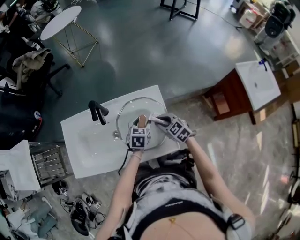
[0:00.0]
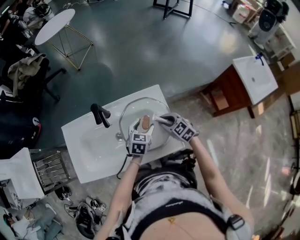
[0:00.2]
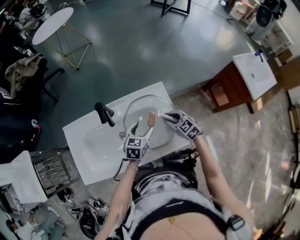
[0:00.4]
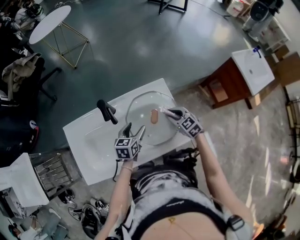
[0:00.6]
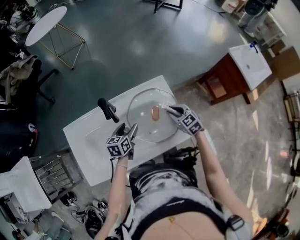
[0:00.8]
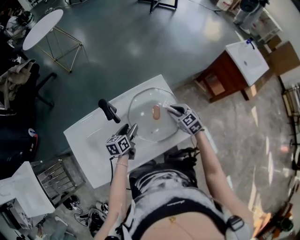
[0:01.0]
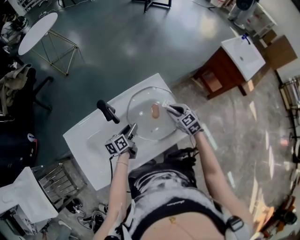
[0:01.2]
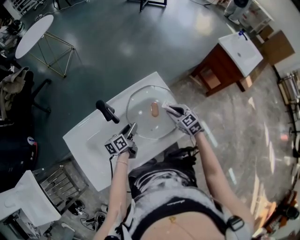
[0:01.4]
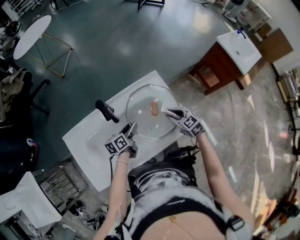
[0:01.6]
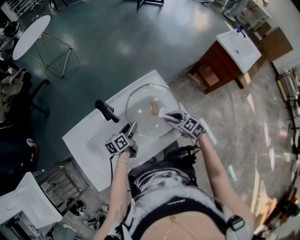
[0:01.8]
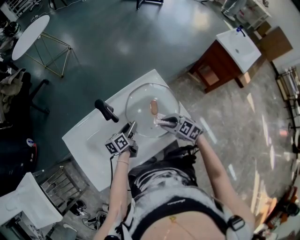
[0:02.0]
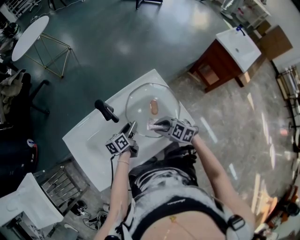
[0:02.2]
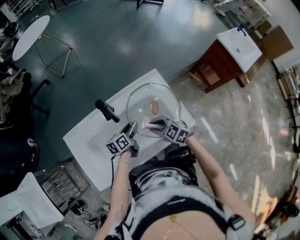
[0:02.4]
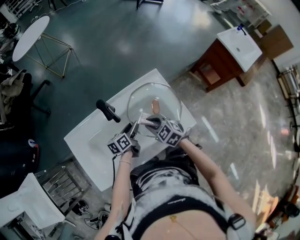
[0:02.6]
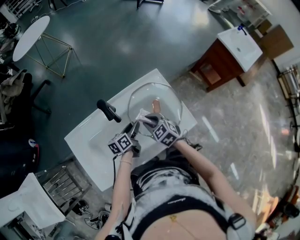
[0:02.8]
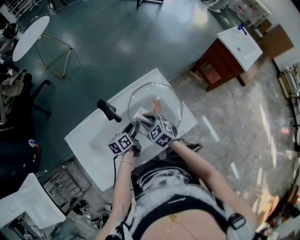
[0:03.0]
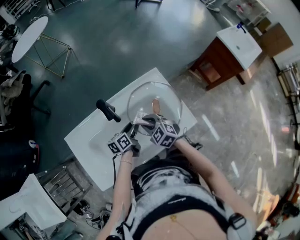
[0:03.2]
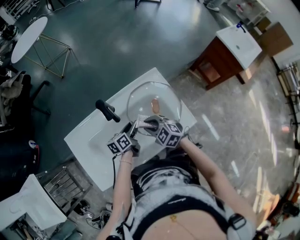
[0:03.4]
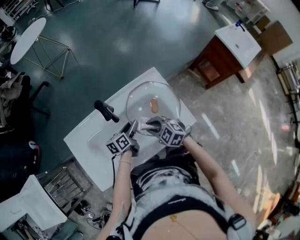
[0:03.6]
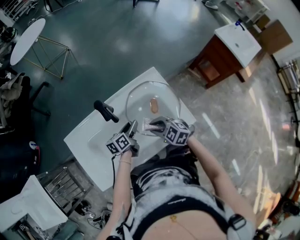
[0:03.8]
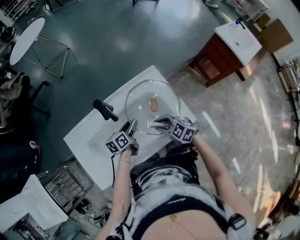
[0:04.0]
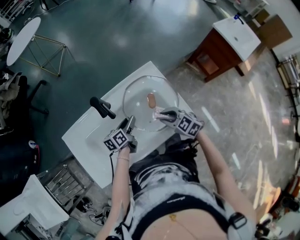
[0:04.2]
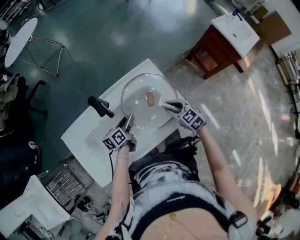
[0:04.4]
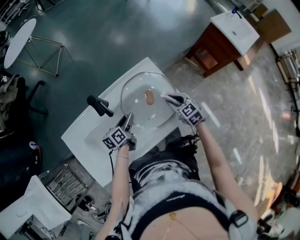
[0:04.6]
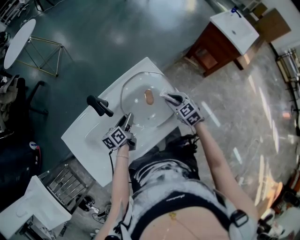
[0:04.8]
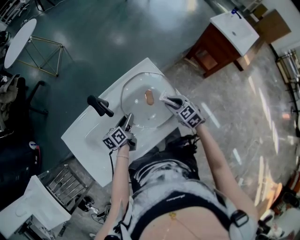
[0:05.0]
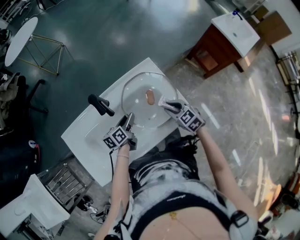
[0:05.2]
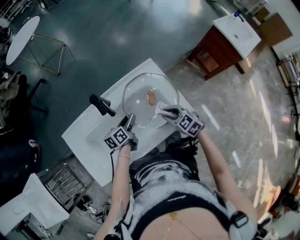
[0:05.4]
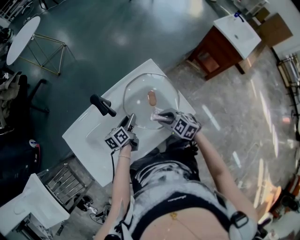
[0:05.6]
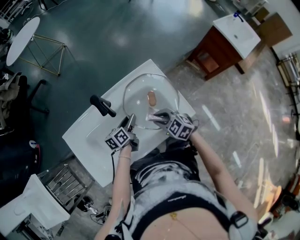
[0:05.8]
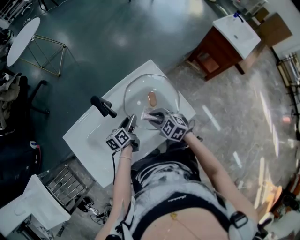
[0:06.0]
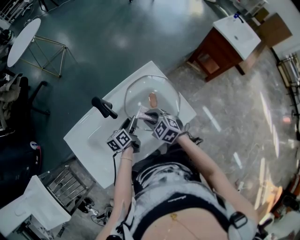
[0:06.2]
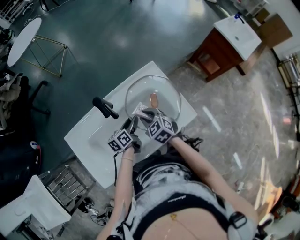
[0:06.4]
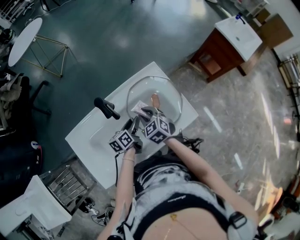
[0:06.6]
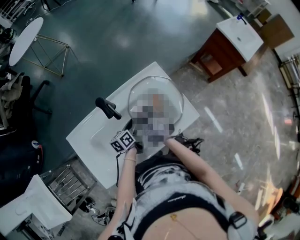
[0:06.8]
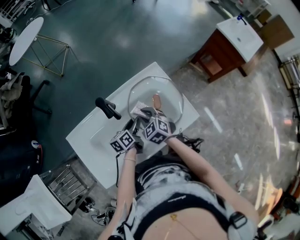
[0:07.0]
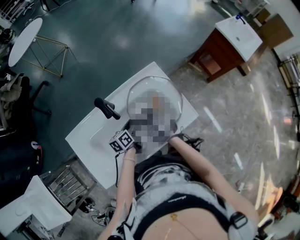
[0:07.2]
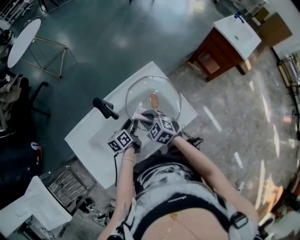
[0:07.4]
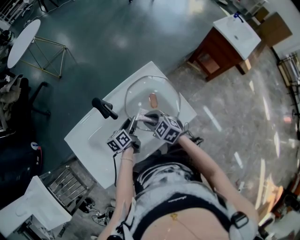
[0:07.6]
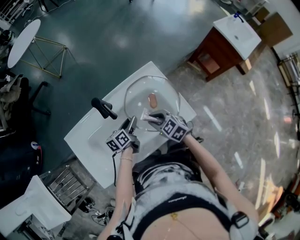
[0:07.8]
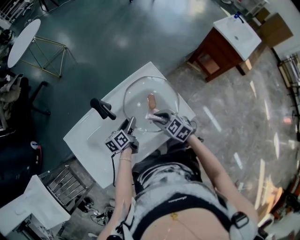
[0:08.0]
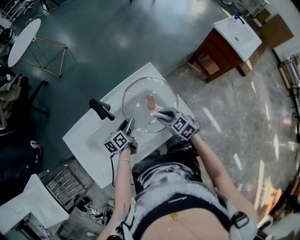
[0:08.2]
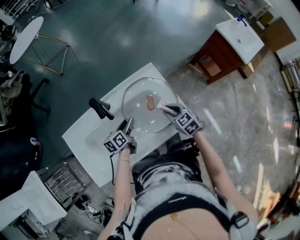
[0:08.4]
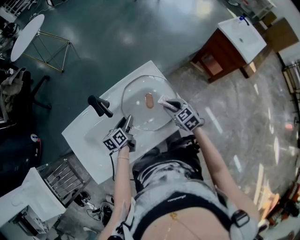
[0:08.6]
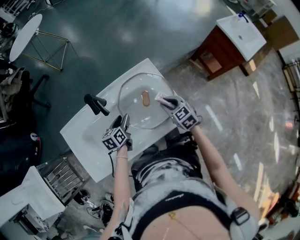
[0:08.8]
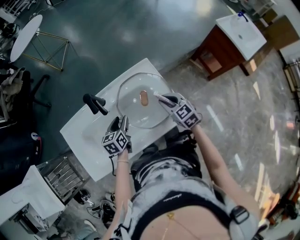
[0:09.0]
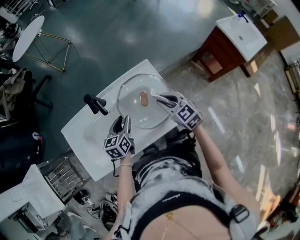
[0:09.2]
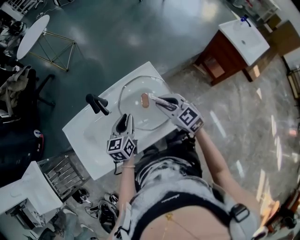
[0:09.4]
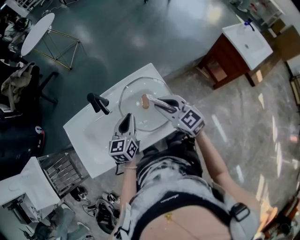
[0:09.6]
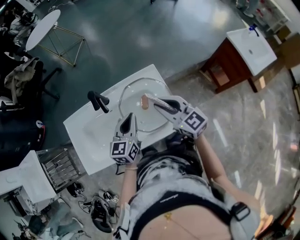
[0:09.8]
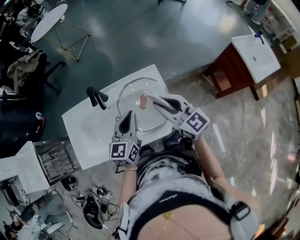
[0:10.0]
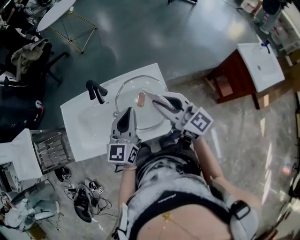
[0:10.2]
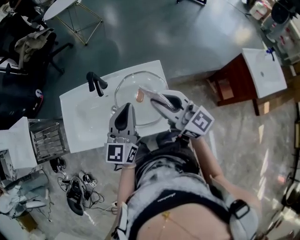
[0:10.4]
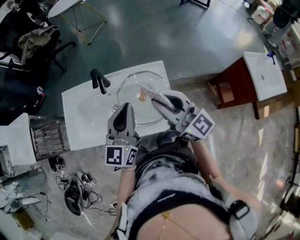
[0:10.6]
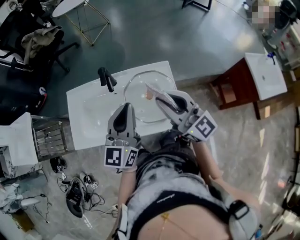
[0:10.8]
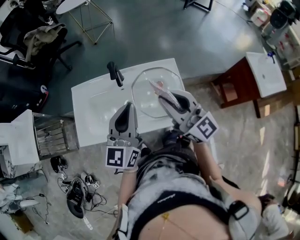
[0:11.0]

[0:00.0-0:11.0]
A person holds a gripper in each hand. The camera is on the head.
0:00.0 to 0:01.6: The left gripper shifts by roughly 15 cm, and swivels some 40 degrees; the right gripper changes place by roughly 5 cm, and turns by approximately 20 degrees.
0:01.6 to 0:03.2: The right gripper is displaced to the left by approximately 15 cm.
0:03.2 to 0:04.8: The right gripper moves to the right, some 20 cm, and rotates some 20 degrees.
0:04.8 to 0:06.2: The right gripper shifts about 15 cm to the left.
0:06.2 to 0:07.8: The grippers stay close to where they were, moving slightly.
0:07.8 to 0:09.4: The left gripper travels upward by some 15 cm, and rotates approximately 30 degrees; the right gripper is displaced upward and to the right by approximately 15 cm.
0:09.4 to 0:11.0: The left gripper heads upward and backward, covering approximately 20 cm, and swivels about 30 degrees, while the right gripper goes approximately 20 cm upward, and points its fingers approximately 40 degrees further upward.

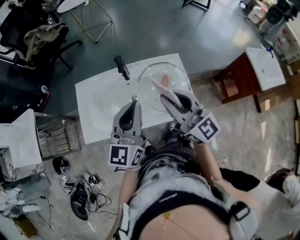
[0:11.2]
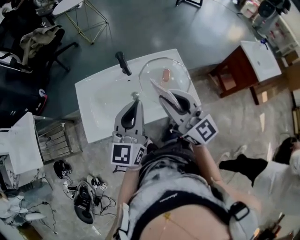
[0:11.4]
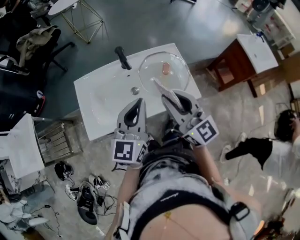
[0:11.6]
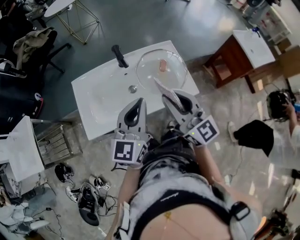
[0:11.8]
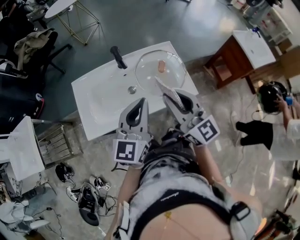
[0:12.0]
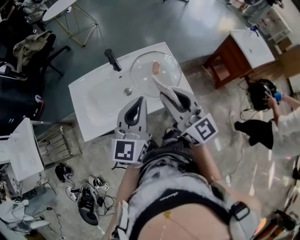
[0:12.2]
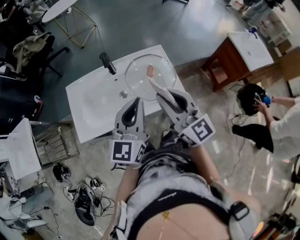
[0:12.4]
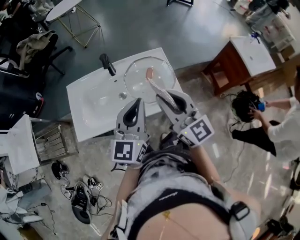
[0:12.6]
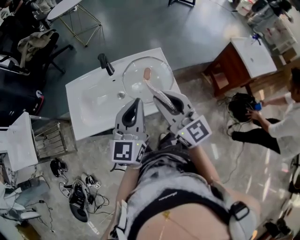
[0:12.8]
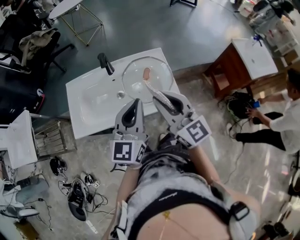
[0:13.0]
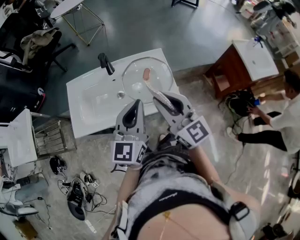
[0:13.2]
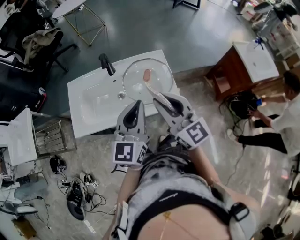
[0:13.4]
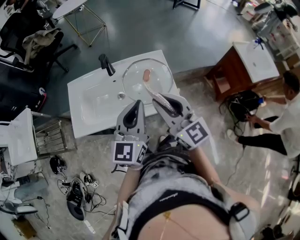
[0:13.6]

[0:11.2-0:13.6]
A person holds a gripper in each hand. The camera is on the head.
0:11.2 to 0:12.4: The right gripper is displaced backward by about 5 cm, while the left gripper is displaced backward and to the right by roughly 10 cm.
0:12.4 to 0:13.6: The grippers stay close to where they were, moving slightly.

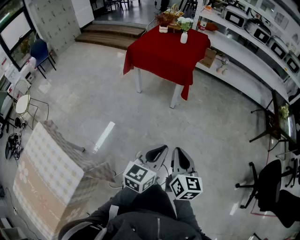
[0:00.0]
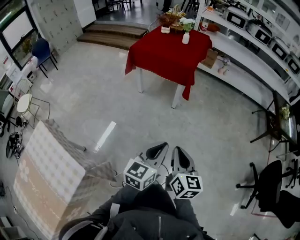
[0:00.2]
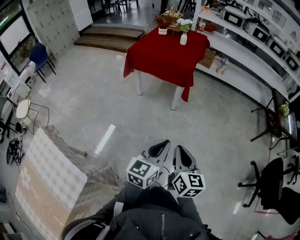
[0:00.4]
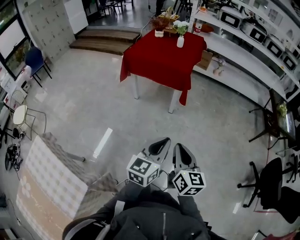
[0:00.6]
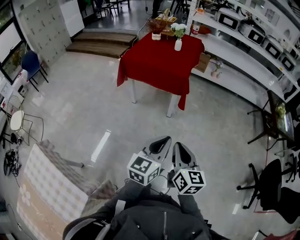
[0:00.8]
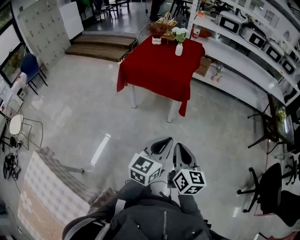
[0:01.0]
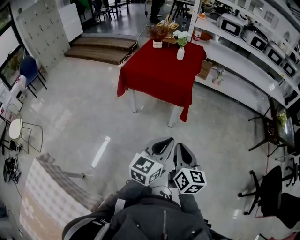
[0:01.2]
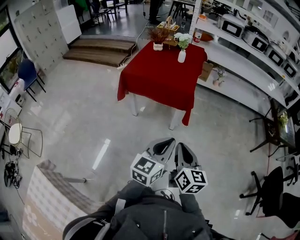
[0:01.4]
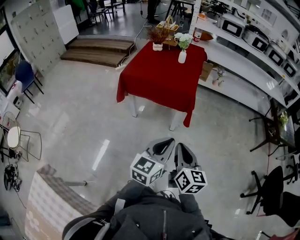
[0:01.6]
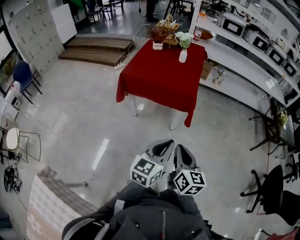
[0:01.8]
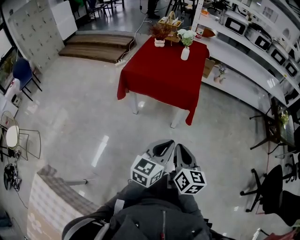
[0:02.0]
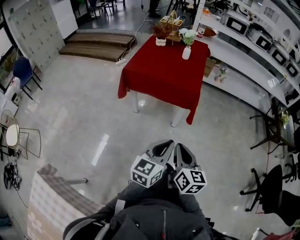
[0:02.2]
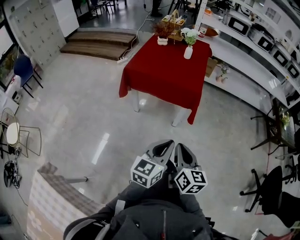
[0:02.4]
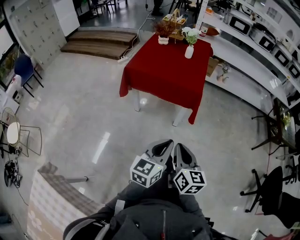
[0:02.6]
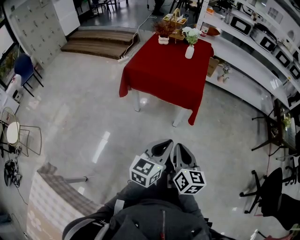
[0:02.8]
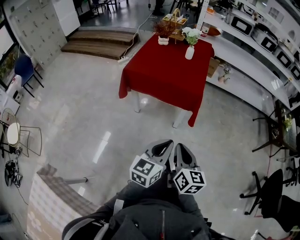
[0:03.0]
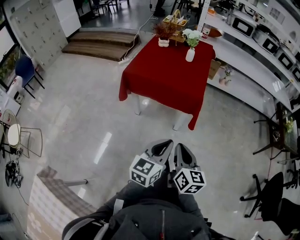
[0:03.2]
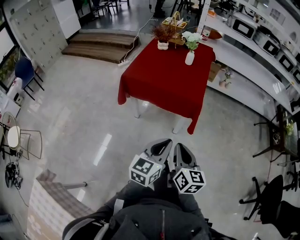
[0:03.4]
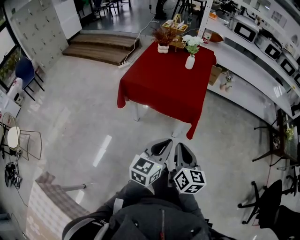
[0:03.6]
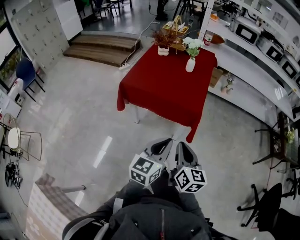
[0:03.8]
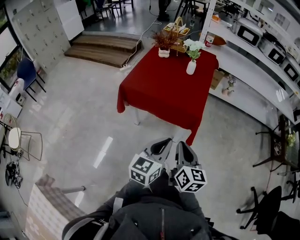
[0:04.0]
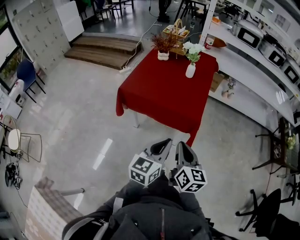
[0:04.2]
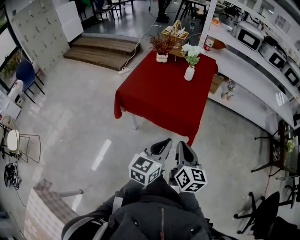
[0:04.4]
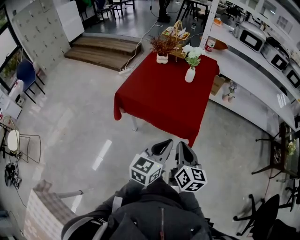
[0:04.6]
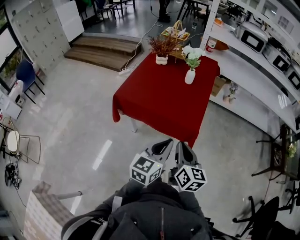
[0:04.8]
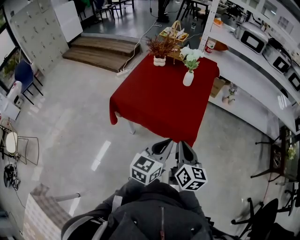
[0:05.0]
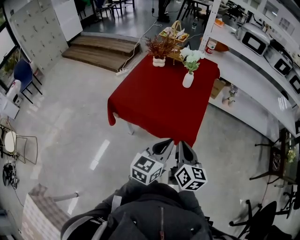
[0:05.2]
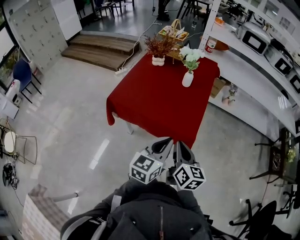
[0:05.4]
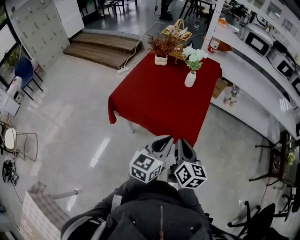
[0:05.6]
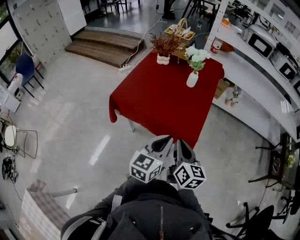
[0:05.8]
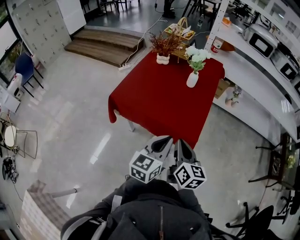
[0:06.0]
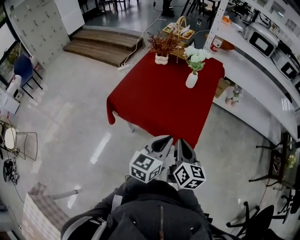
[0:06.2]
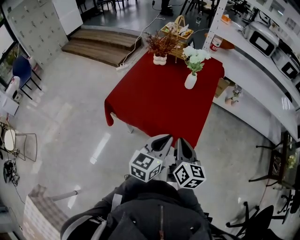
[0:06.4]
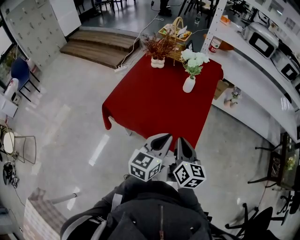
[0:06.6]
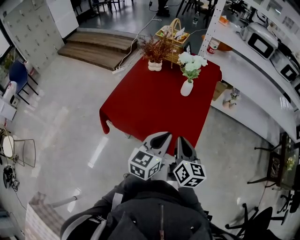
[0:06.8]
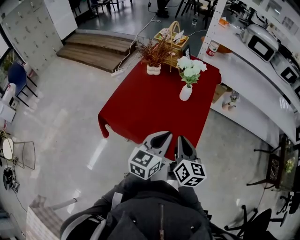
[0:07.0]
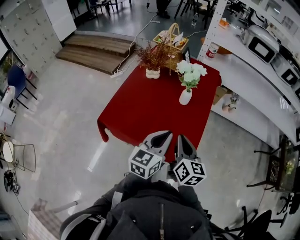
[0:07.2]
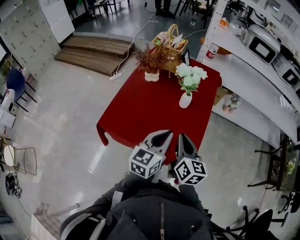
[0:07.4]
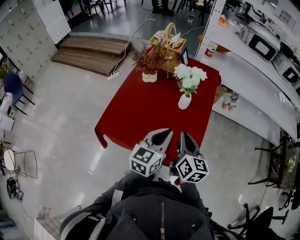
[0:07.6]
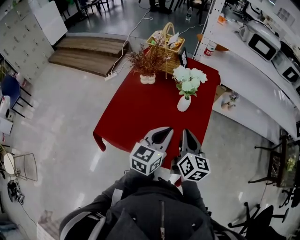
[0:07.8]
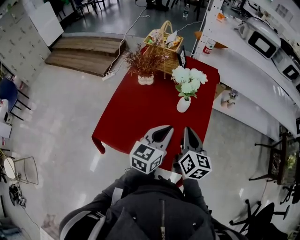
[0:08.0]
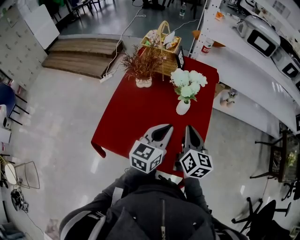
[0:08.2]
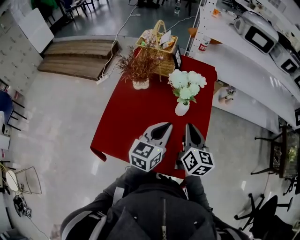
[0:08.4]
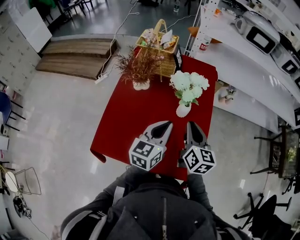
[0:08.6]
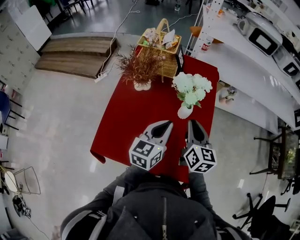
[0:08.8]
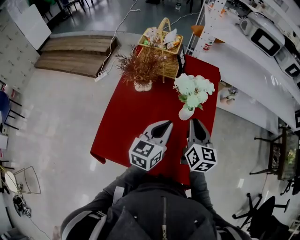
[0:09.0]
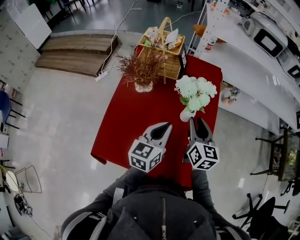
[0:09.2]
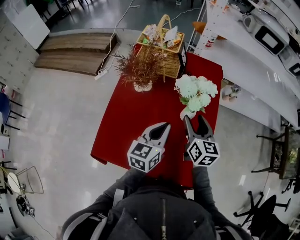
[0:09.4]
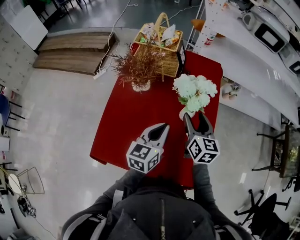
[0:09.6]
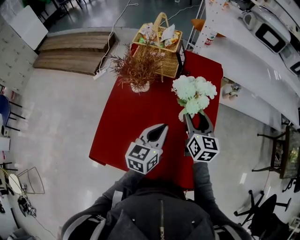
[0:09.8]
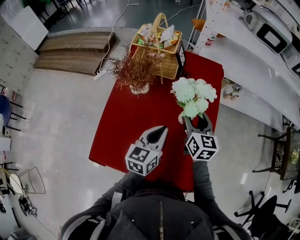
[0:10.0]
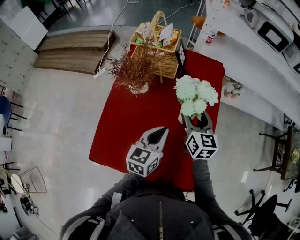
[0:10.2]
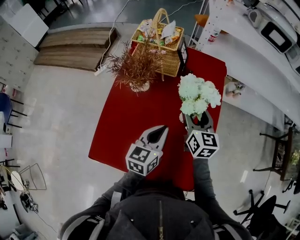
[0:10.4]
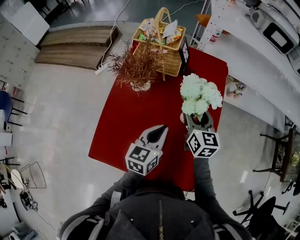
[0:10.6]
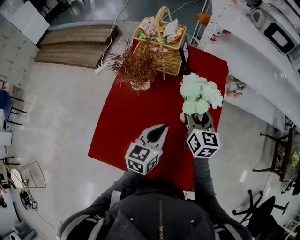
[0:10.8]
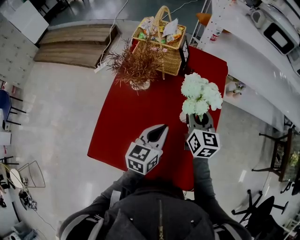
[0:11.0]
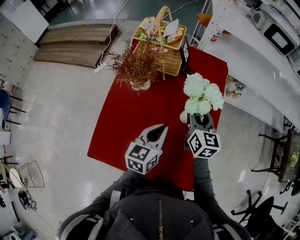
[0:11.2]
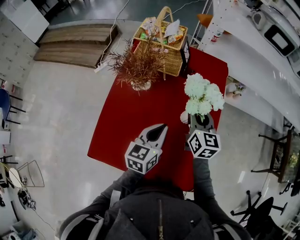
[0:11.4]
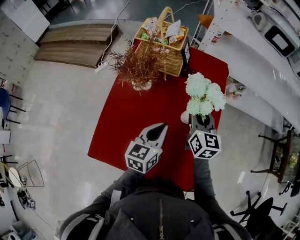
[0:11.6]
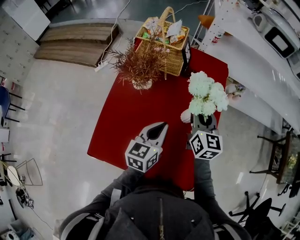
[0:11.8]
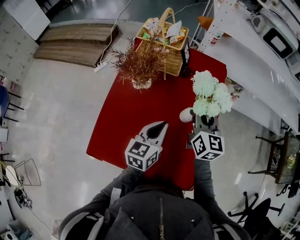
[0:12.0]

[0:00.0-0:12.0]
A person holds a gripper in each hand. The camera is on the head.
0:00.0 to 0:01.6: The two grippers go about 30 cm forward and to the left.
0:01.6 to 0:03.0: The right gripper shifts by some 5 cm, while the left gripper moves approximately 5 cm.
0:03.0 to 0:04.4: Both grippers travel together forward, about 20 cm.
0:04.4 to 0:06.0: The grippers both shift forward by about 15 cm.
0:06.0 to 0:07.6: Both grippers move forward, approximately 20 cm.
0:07.6 to 0:09.0: The left gripper moves forward and to the left, some 15 cm. Meanwhile the right gripper moves forward, about 15 cm.
0:09.0 to 0:10.4: The right gripper goes some 10 cm forward, and opens. The left gripper ends up about 5 cm from where it was.
0:10.4 to 0:12.0: The right gripper closes up.
